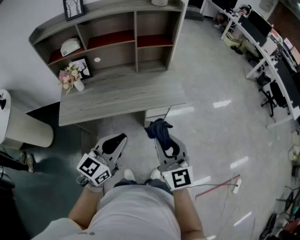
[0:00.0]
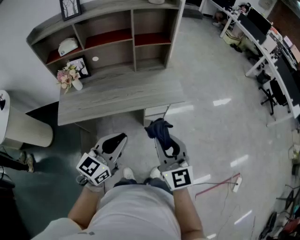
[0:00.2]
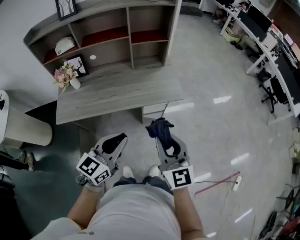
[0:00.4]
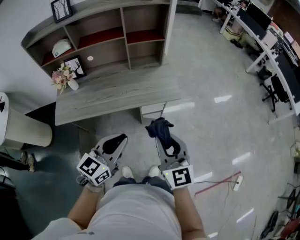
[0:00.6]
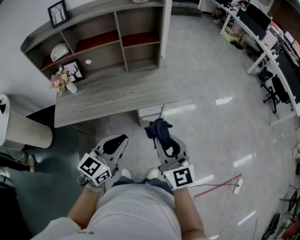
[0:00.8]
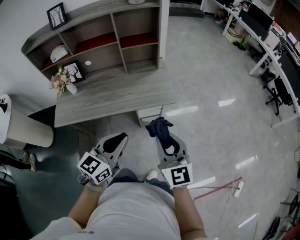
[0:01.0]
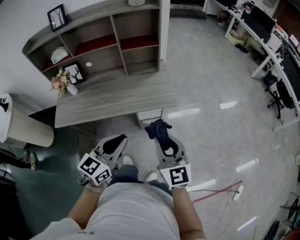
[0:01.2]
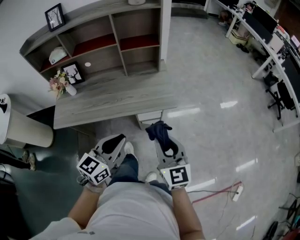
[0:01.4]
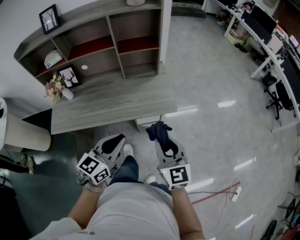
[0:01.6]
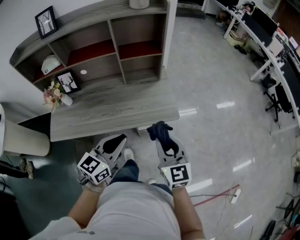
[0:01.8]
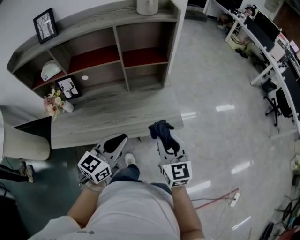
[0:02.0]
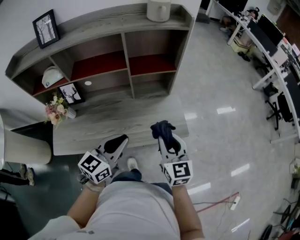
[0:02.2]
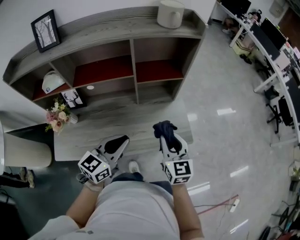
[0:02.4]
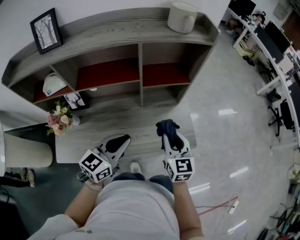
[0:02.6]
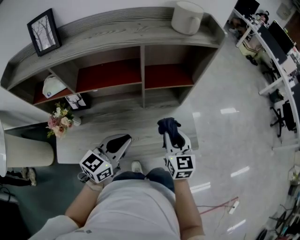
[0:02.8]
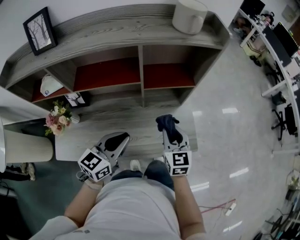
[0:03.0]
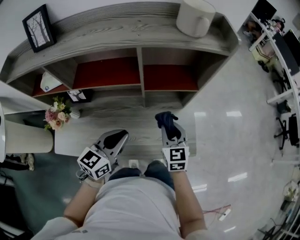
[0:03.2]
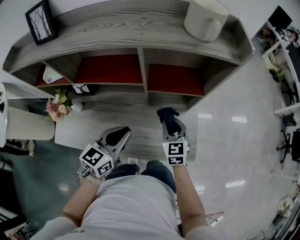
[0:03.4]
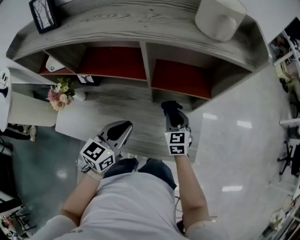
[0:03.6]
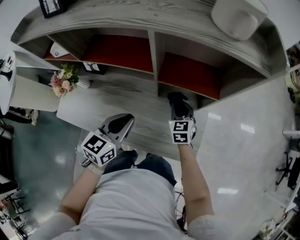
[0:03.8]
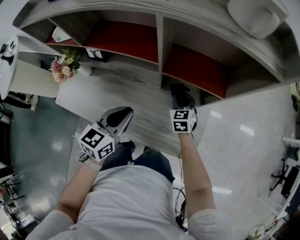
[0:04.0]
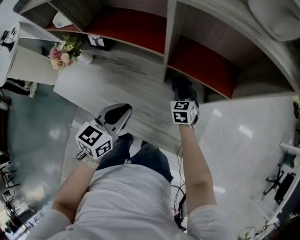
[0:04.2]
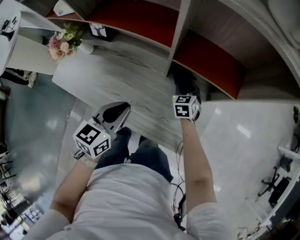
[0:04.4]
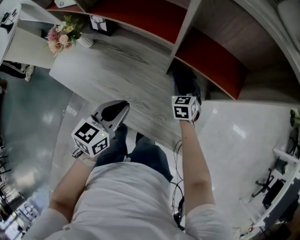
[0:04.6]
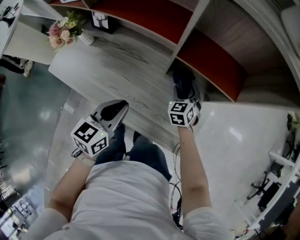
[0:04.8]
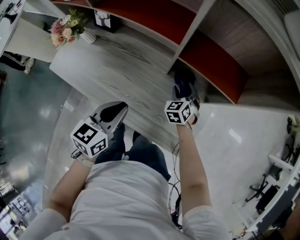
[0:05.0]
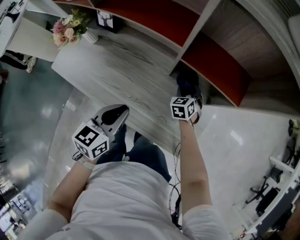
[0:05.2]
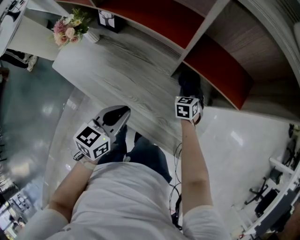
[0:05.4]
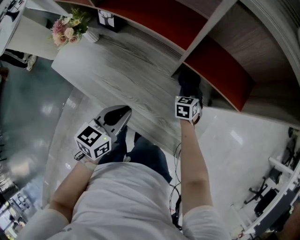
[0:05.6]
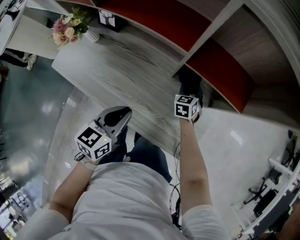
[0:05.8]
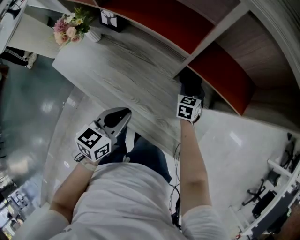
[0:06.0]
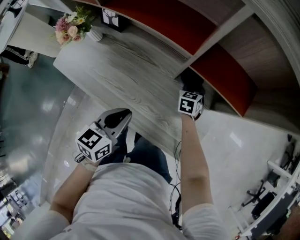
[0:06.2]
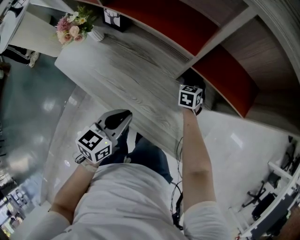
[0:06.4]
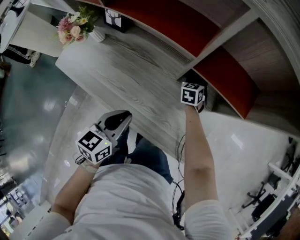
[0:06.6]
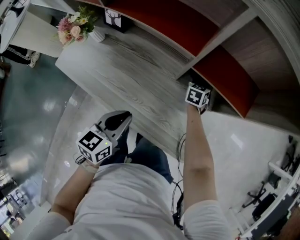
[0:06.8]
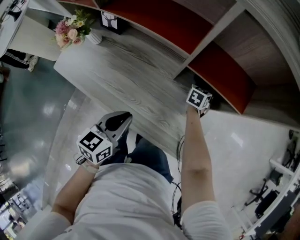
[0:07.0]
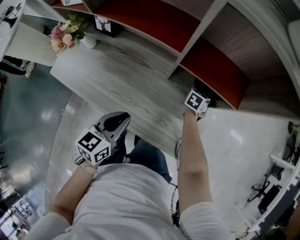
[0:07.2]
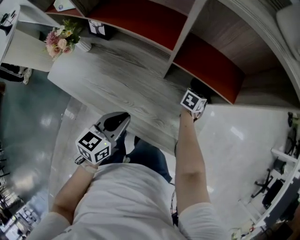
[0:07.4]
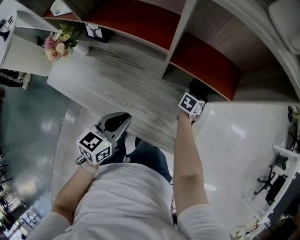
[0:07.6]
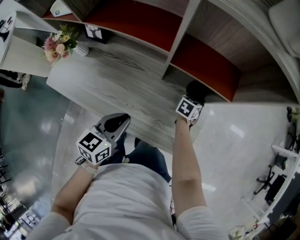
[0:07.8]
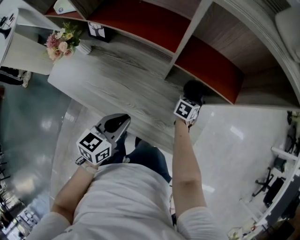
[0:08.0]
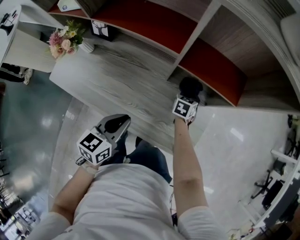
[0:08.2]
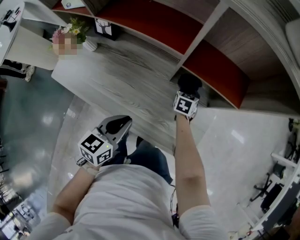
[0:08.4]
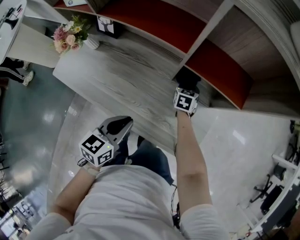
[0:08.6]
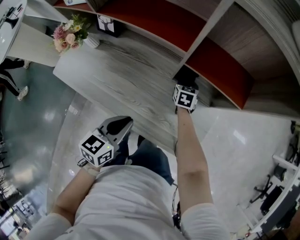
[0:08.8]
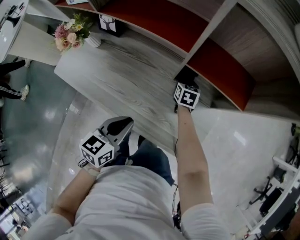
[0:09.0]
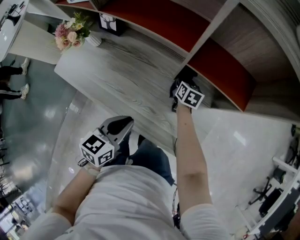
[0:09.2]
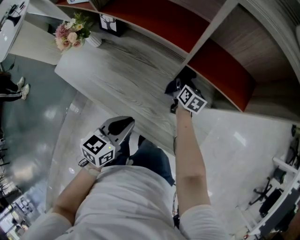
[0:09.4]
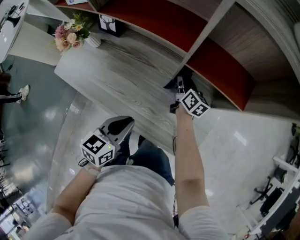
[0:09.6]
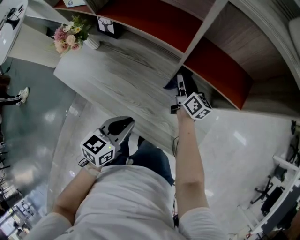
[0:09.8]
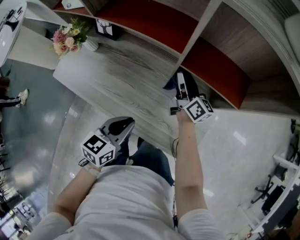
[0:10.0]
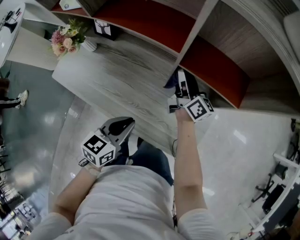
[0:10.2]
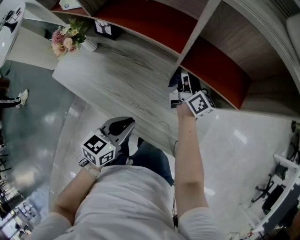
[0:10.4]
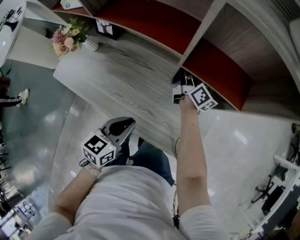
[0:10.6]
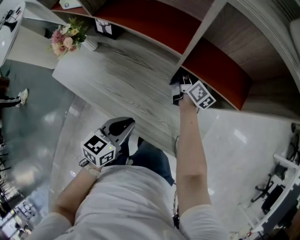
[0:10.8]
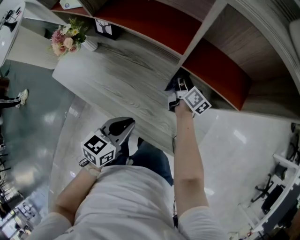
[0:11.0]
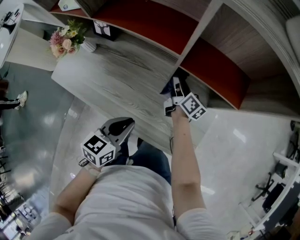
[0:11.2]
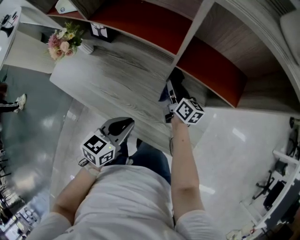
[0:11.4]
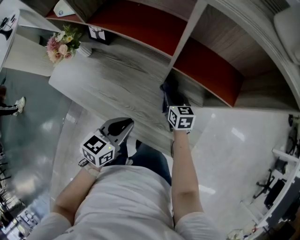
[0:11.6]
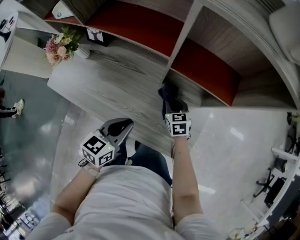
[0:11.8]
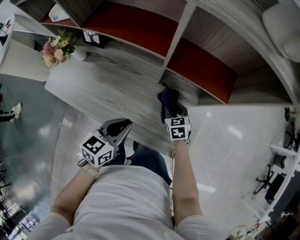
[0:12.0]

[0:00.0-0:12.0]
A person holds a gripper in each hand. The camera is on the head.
0:00.0 to 0:01.6: The right gripper heads forward, to the right and downward, covering some 15 cm. The left gripper shifts roughly 15 cm forward and to the right.
0:01.6 to 0:03.0: Both grippers move forward and to the left, roughly 35 cm.
0:03.0 to 0:04.4: The right gripper heads downward, covering roughly 25 cm, turns by approximately 40 degrees, and opens up, while the left gripper moves downward, some 10 cm, and swivels approximately 40 degrees.
0:04.4 to 0:06.0: There are only small adjustments of the grippers.
0:06.0 to 0:07.6: The right gripper moves to the right, approximately 15 cm, and rotates roughly 40 degrees.
0:07.6 to 0:09.0: The right gripper ends up approximately 15 cm from where it was, and swivels about 30 degrees.
0:09.0 to 0:10.4: The right gripper heads upward, covering roughly 15 cm, and points its fingers roughly 50 degrees further upward.
0:10.4 to 0:12.0: The right gripper travels downward and backward by roughly 20 cm, and tilts its fingers about 50 degrees downward.

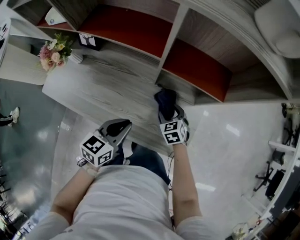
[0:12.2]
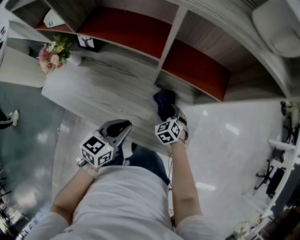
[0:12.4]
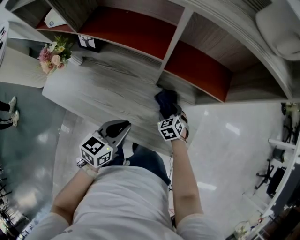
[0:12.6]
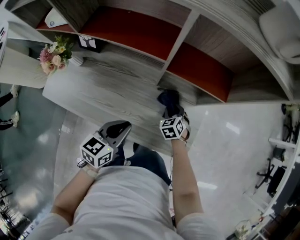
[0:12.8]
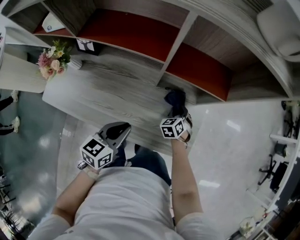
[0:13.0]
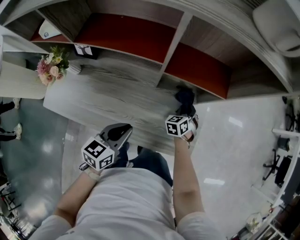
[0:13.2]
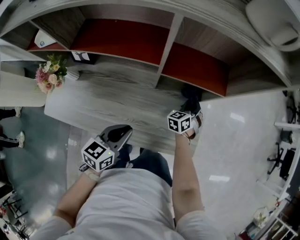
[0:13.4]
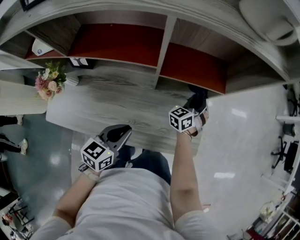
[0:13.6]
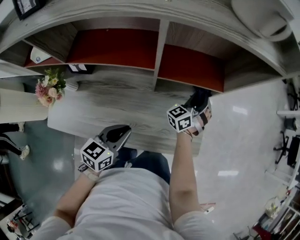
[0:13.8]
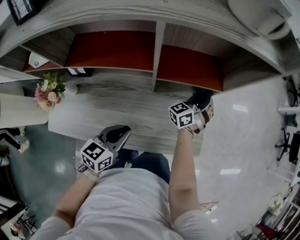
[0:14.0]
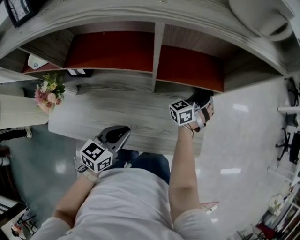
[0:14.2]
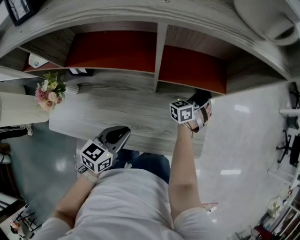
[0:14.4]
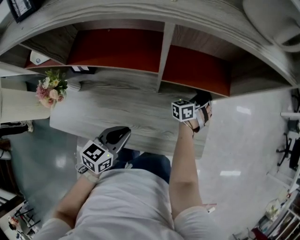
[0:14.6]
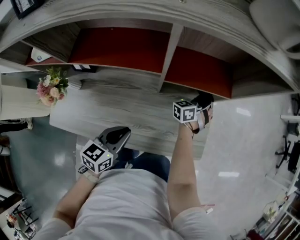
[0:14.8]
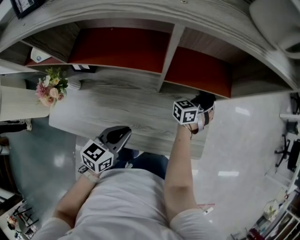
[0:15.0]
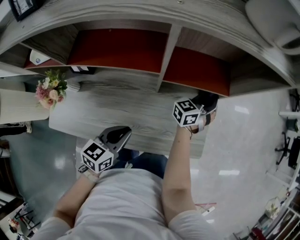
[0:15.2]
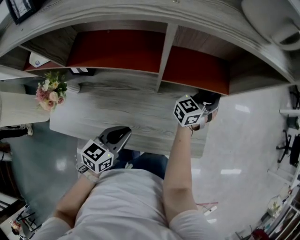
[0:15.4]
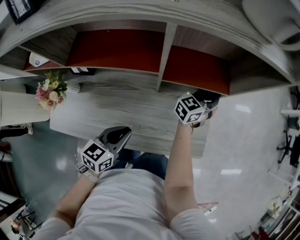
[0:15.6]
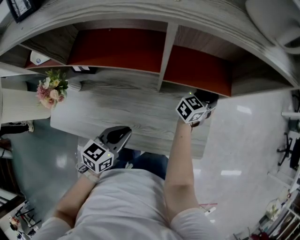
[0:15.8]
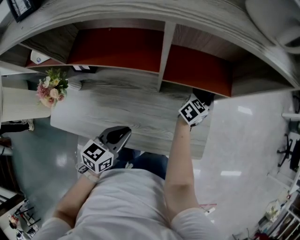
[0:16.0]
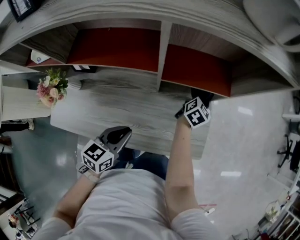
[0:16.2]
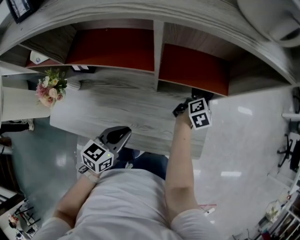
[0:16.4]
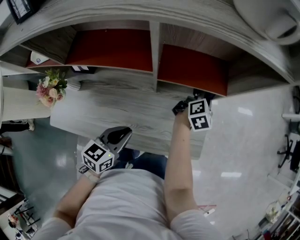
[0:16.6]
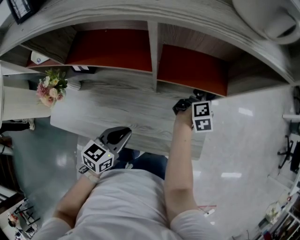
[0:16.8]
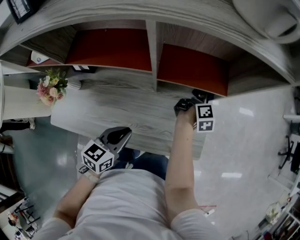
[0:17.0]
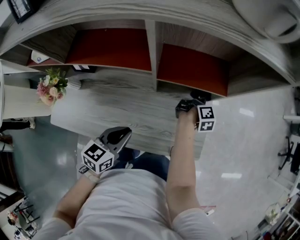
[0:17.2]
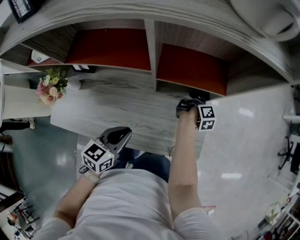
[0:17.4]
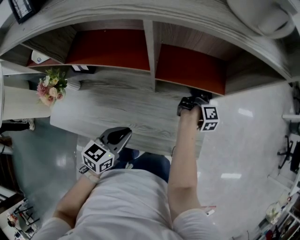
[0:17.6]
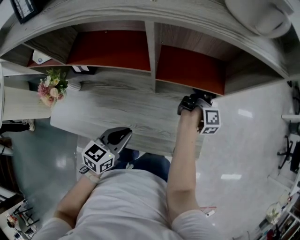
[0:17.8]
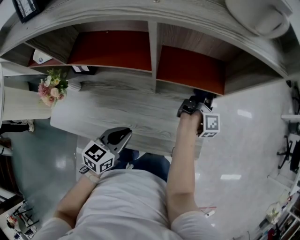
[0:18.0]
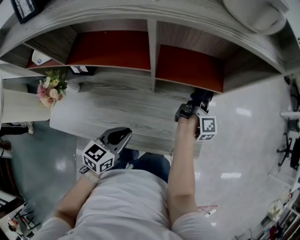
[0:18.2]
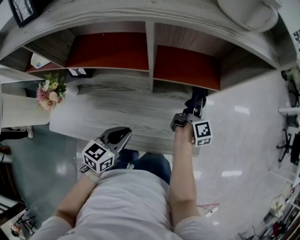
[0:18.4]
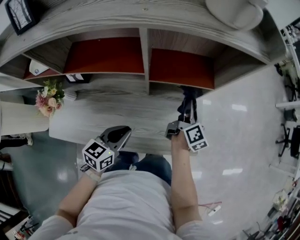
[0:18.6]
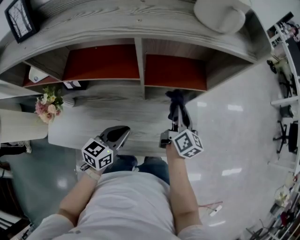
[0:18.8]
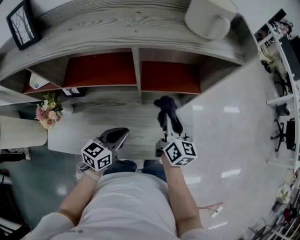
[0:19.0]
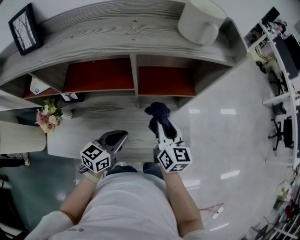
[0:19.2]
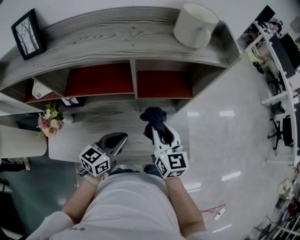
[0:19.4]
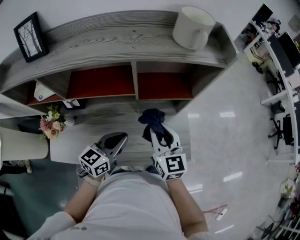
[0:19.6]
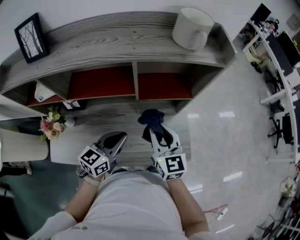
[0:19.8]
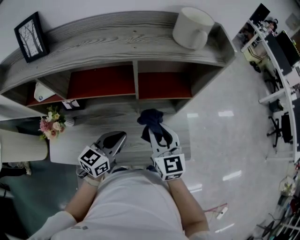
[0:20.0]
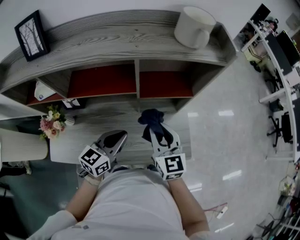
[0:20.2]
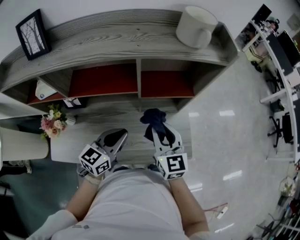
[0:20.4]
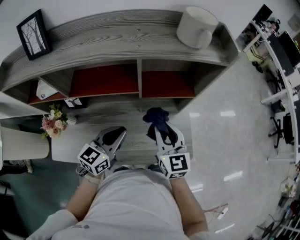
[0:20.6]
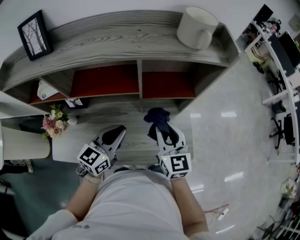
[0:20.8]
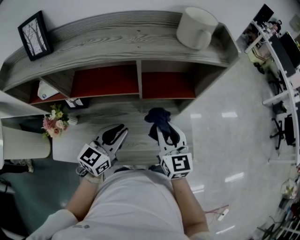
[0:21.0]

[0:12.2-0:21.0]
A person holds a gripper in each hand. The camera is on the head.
0:12.2 to 0:13.6: The right gripper moves roughly 15 cm, turns by some 60 degrees, and closes up.
0:13.6 to 0:15.2: The right gripper moves up and down over about 10 cm, changing direction 2 times, and rotates about 20 degrees.
0:15.2 to 0:16.6: The right gripper moves approximately 5 cm downward and comes back, and rolls clockwise, seen from behind, by approximately 70 degrees.
0:16.6 to 0:18.0: The right gripper travels downward and back again, roughly 10 cm each way, and rotates around the line of its fingers by approximately 40 degrees, clockwise from behind.
0:18.0 to 0:19.6: The right gripper is displaced backward, upward and to the left by some 30 cm, and rotates around the line of its fingers by about 70 degrees, counterclockwise from behind; the left gripper travels upward by roughly 10 cm.
0:19.6 to 0:21.0: The grippers make only small movements.

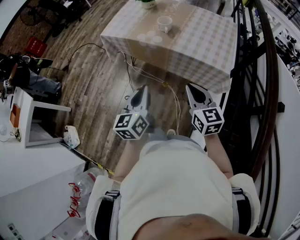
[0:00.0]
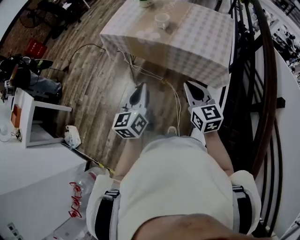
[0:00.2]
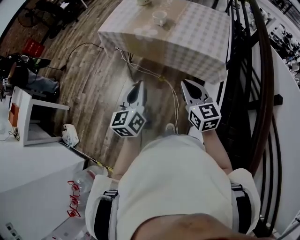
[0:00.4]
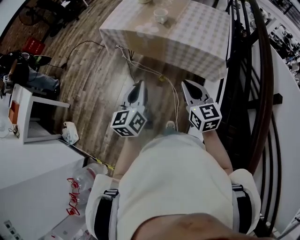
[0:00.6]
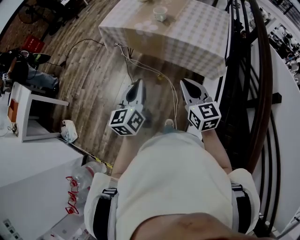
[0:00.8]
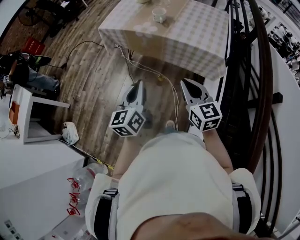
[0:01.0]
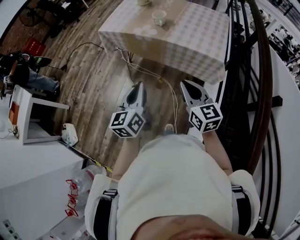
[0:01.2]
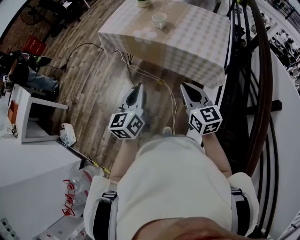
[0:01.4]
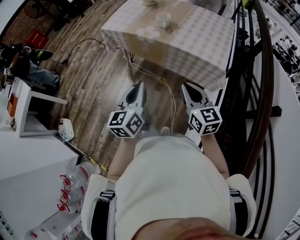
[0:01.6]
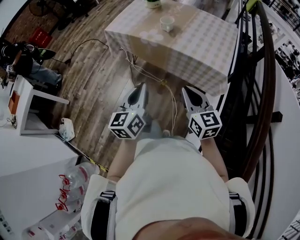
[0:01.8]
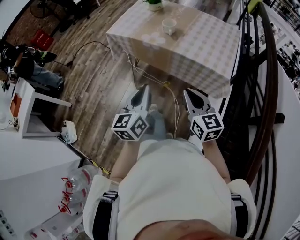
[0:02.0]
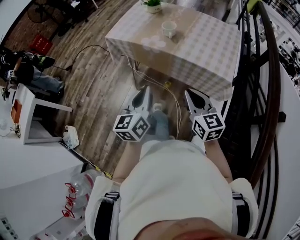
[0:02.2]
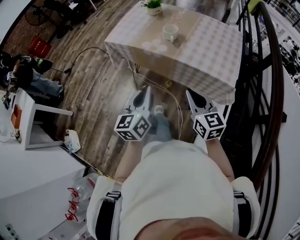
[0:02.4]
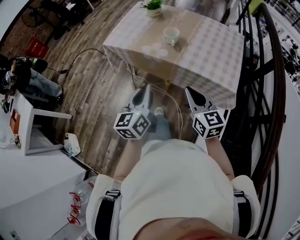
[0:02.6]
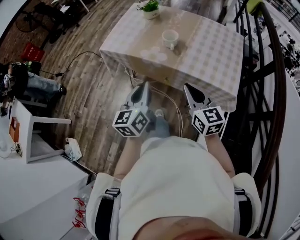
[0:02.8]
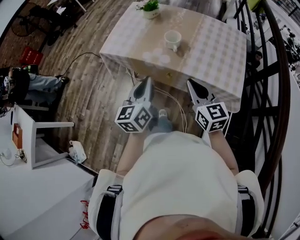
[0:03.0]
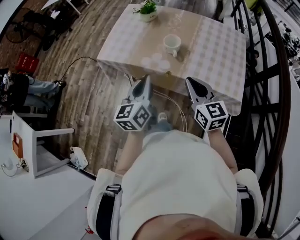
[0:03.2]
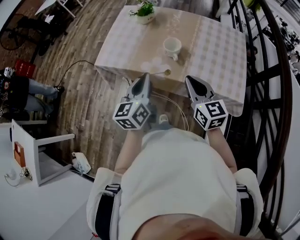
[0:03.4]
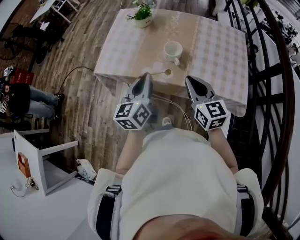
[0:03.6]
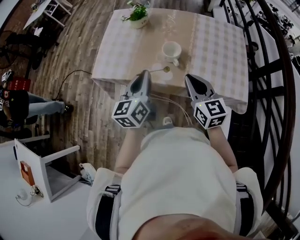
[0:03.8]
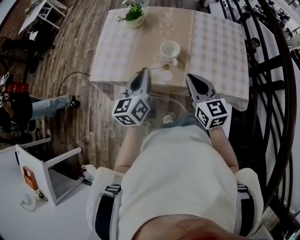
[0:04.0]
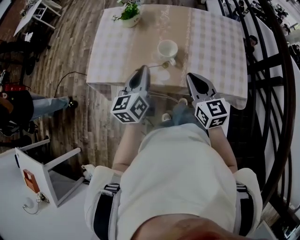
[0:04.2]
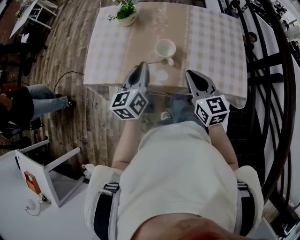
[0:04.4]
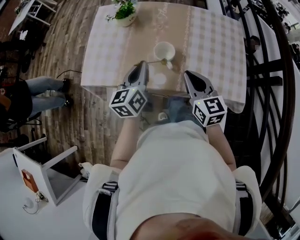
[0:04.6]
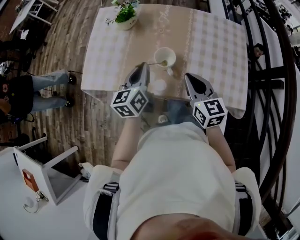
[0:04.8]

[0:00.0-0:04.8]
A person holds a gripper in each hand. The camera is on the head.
0:01.6 to 0:03.2: The two grippers go approximately 25 cm forward.
0:03.2 to 0:04.8: The grippers both shift forward by about 20 cm.
